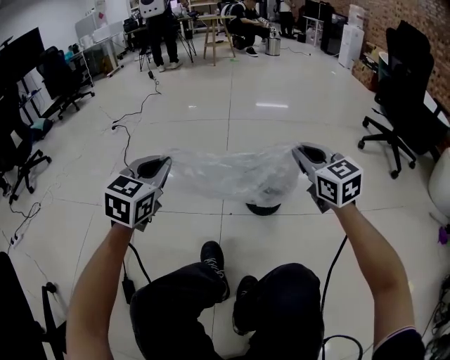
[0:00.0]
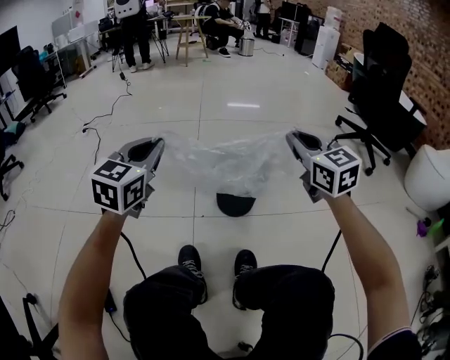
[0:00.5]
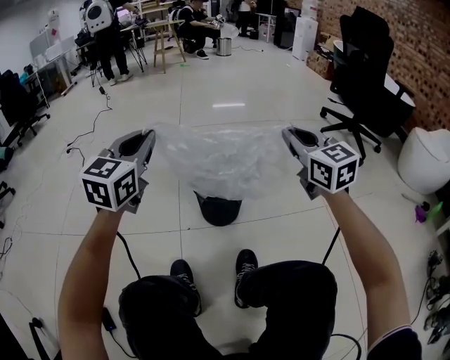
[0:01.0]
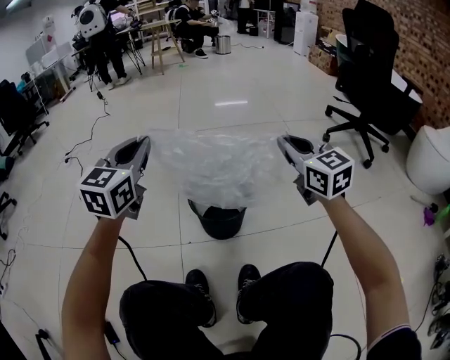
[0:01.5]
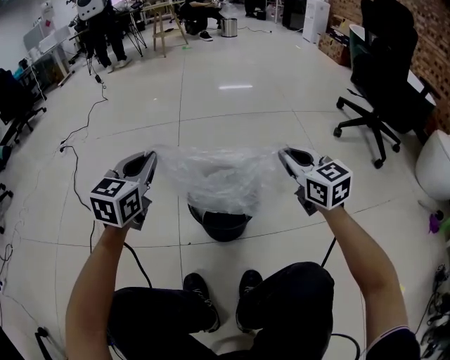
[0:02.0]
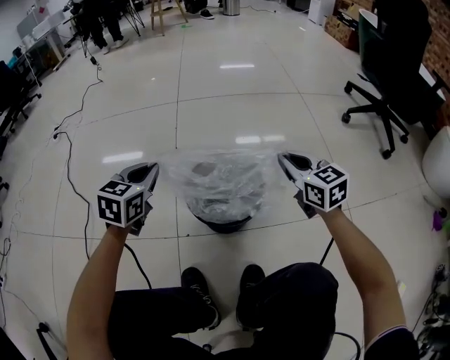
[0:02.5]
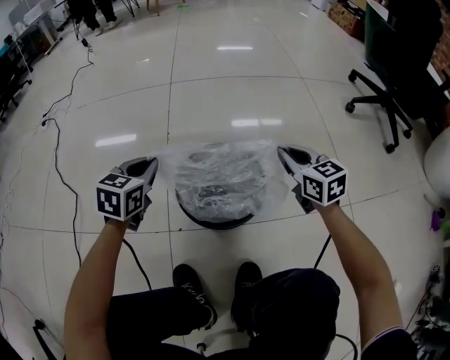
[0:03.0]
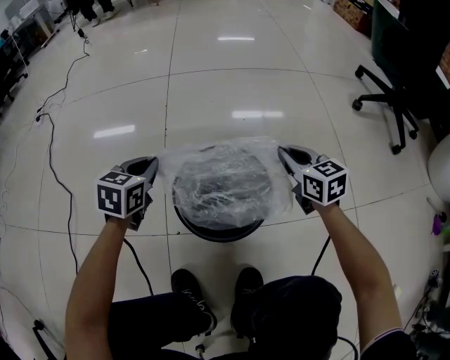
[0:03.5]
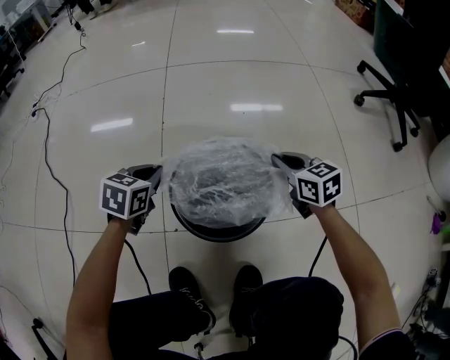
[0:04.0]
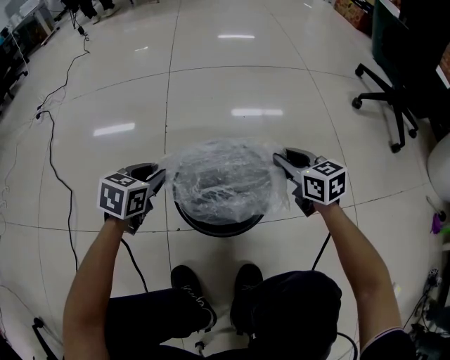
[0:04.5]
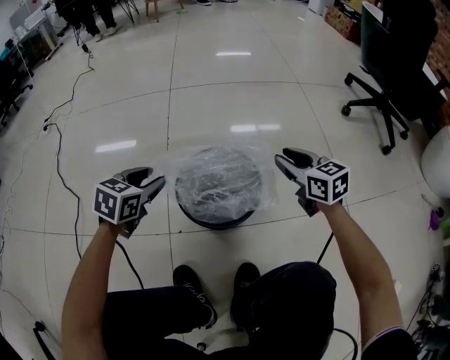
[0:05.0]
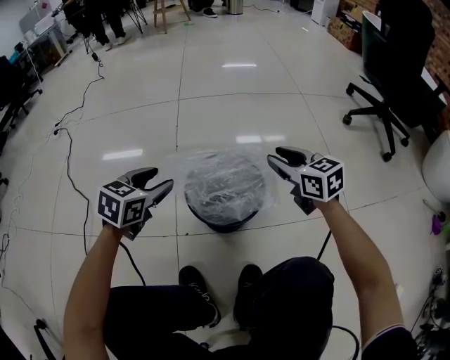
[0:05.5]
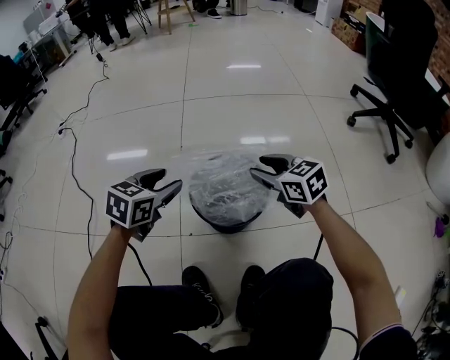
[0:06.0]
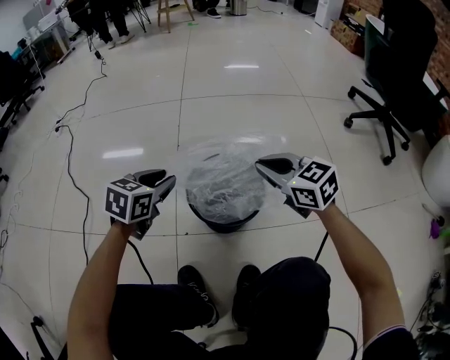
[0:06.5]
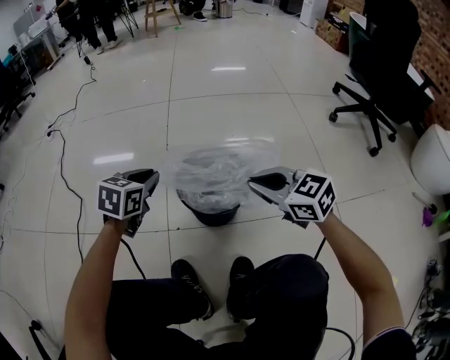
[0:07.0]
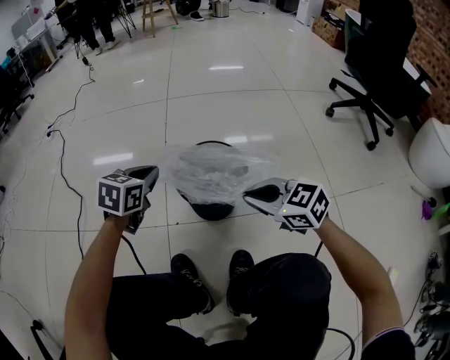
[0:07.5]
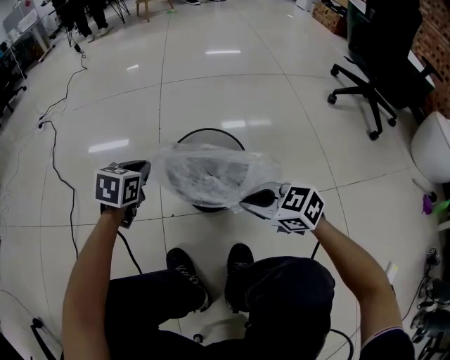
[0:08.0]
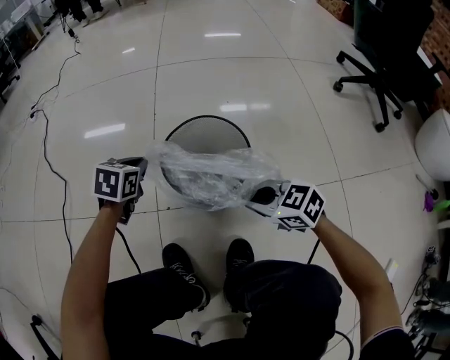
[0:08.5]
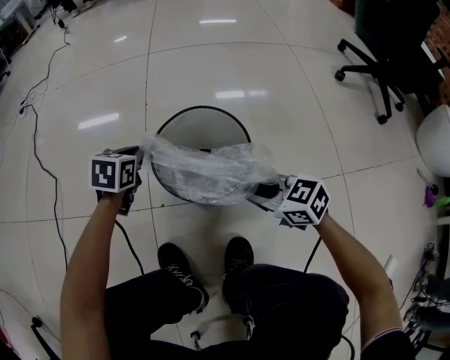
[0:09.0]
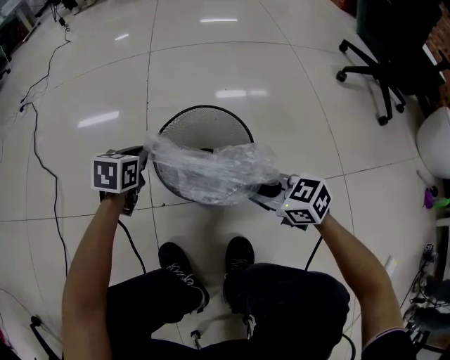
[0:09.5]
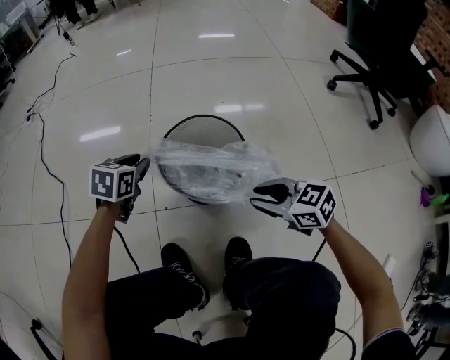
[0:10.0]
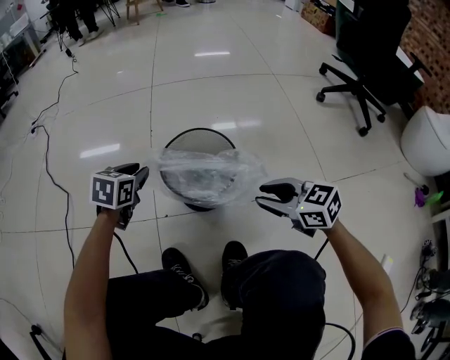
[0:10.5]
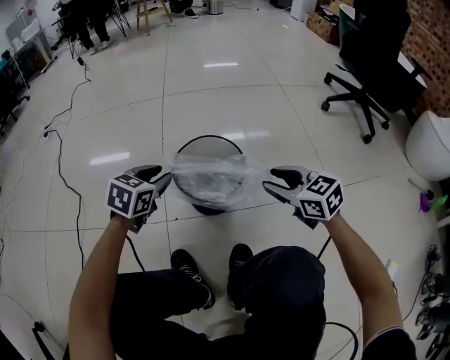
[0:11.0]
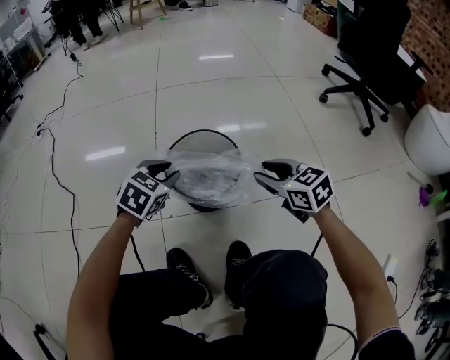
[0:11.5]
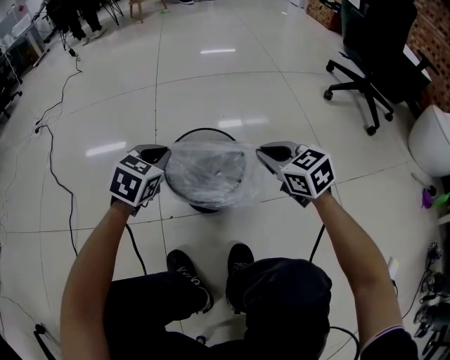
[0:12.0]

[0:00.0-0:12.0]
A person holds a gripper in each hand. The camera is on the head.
0:00.0 to 0:02.0: The right gripper goes approximately 25 cm forward, to the right and downward. The left gripper goes approximately 25 cm forward and to the right.
0:02.0 to 0:04.0: The two grippers go roughly 25 cm downward. The right gripper rotates approximately 30 degrees. Meanwhile the left gripper points its fingers some 30 degrees further downward.
0:04.0 to 0:06.0: The left gripper goes about 15 cm upward and backward, and opens its fingers; the right gripper heads upward and to the left, covering roughly 15 cm, and opens its fingers.
0:06.0 to 0:08.0: The left gripper changes place by about 5 cm, and closes. Meanwhile the right gripper travels backward by approximately 15 cm, and closes.
0:08.0 to 0:10.0: The left gripper is displaced downward by about 5 cm, and opens its fingers. Meanwhile the right gripper shifts by some 5 cm, and opens its fingers.
0:10.0 to 0:12.0: The left gripper shifts approximately 10 cm upward and to the right, turns by about 20 degrees, and closes its fingers; the right gripper shifts about 15 cm forward and upward, swivels roughly 20 degrees, and closes.

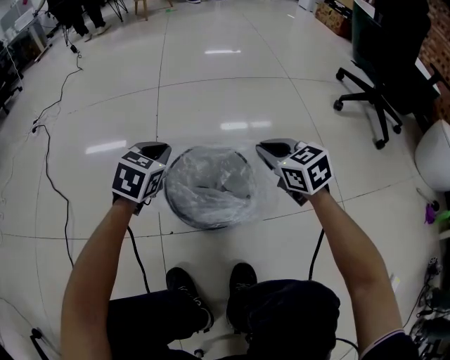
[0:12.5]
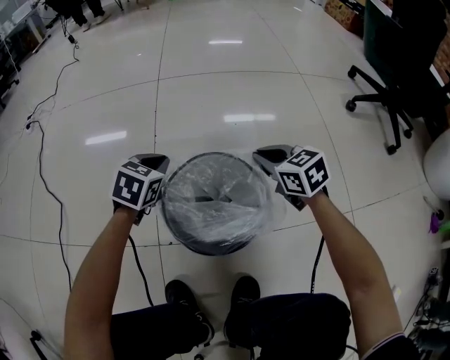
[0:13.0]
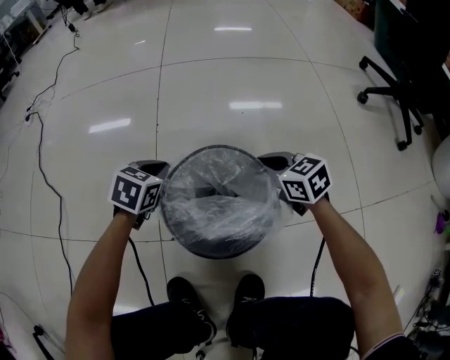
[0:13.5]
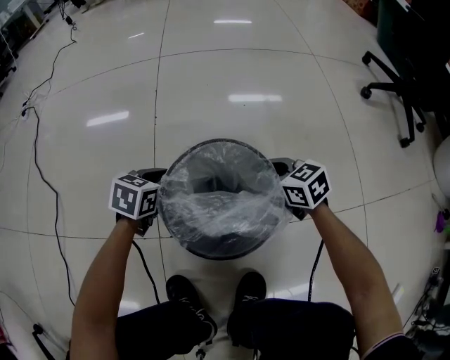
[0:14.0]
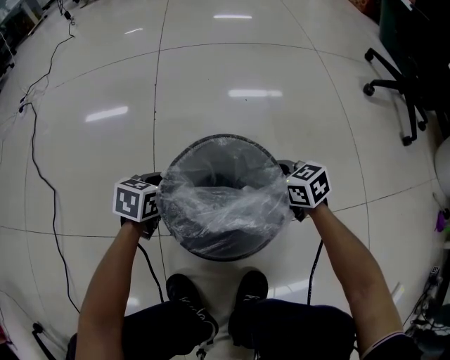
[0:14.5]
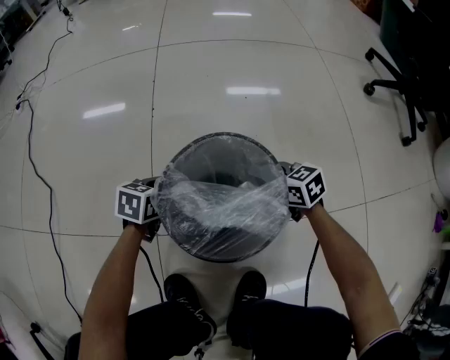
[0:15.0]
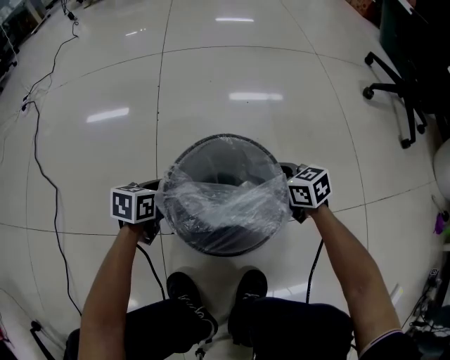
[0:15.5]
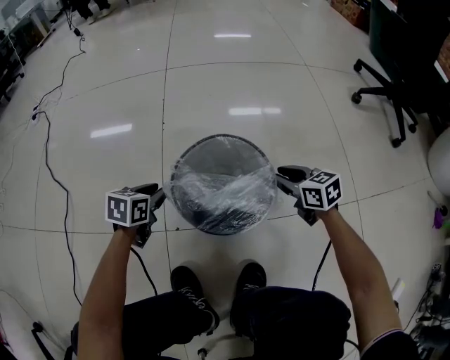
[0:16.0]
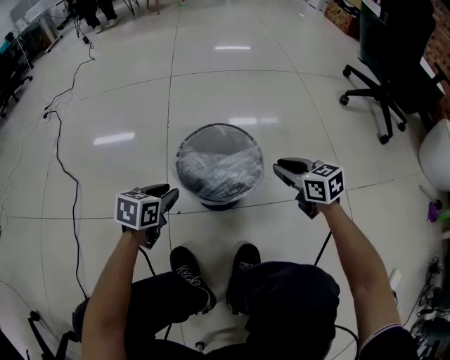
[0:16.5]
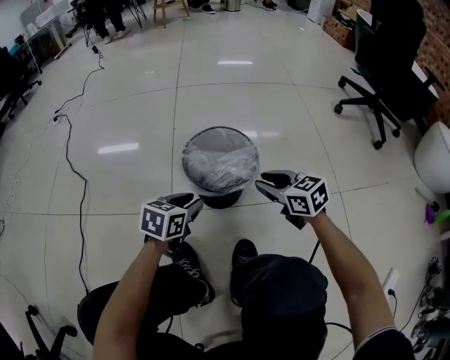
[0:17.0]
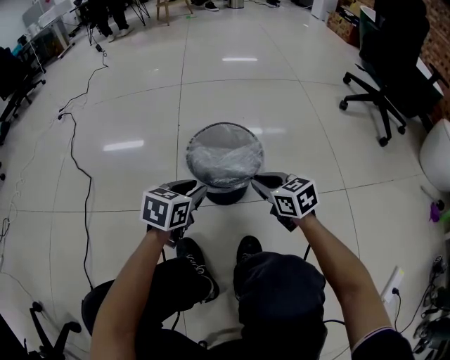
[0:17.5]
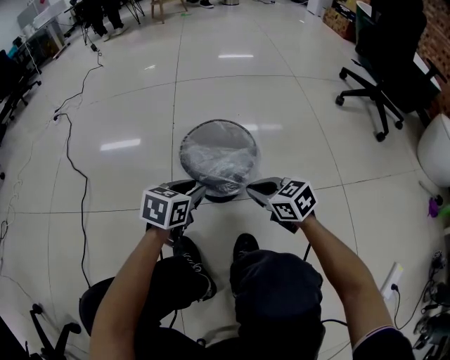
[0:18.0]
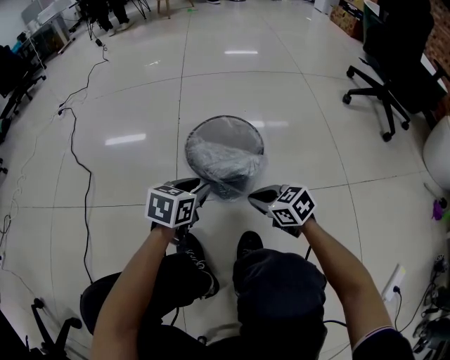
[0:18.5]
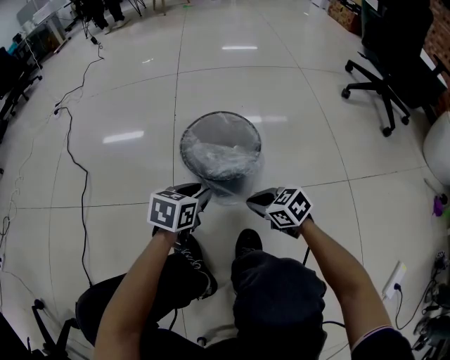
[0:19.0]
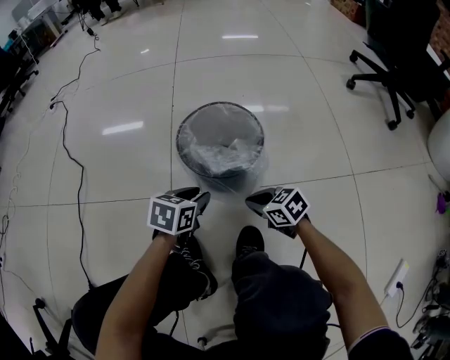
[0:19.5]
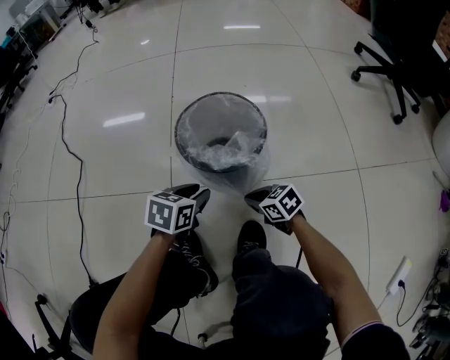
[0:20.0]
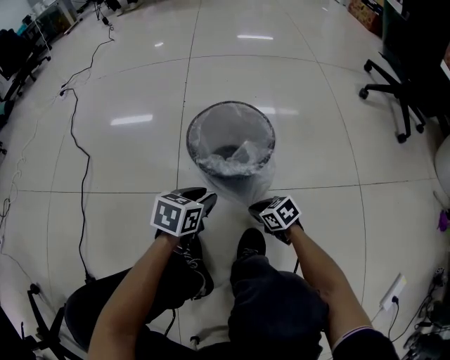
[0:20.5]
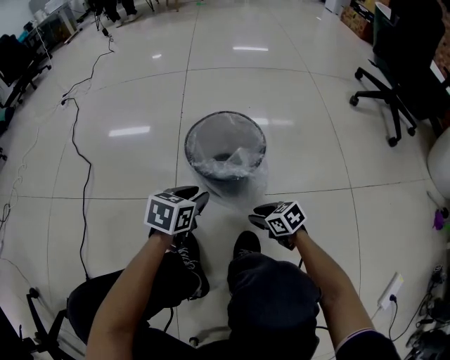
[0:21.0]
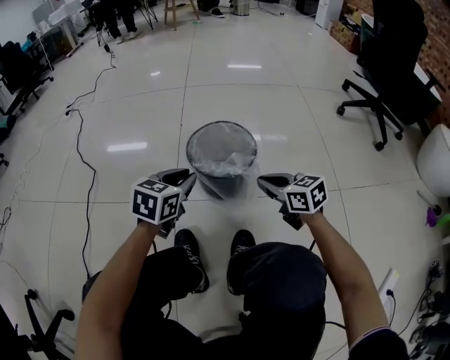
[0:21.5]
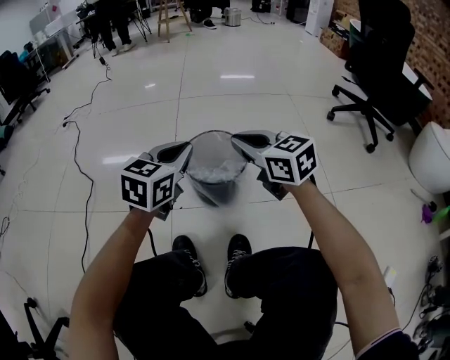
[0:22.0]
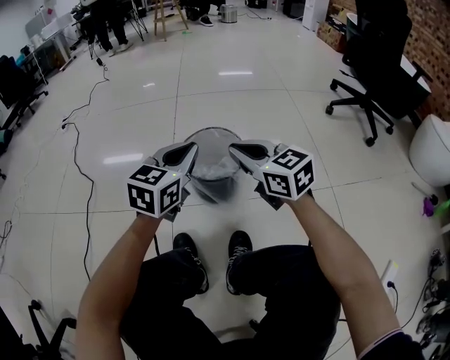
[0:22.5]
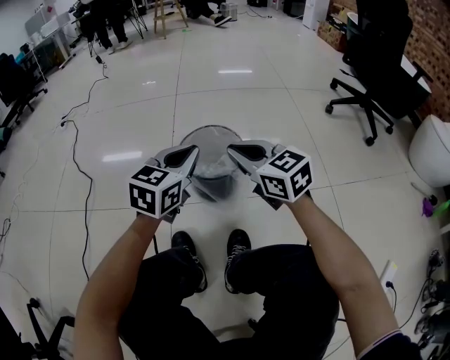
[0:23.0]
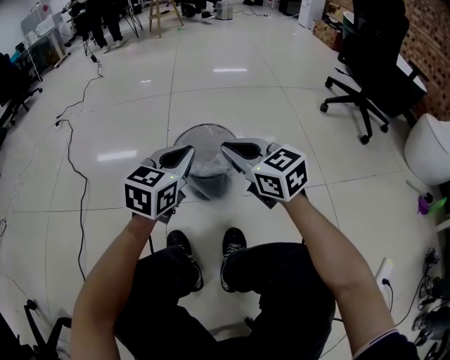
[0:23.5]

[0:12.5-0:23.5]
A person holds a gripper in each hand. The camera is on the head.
0:12.5 to 0:14.5: Both grippers travel together downward, approximately 20 cm. The left gripper swivels roughly 30 degrees; the right gripper swivels some 20 degrees.
0:14.5 to 0:16.0: The left gripper travels to the left by roughly 5 cm, and opens. Meanwhile the right gripper is displaced to the right by about 5 cm, and opens up.
0:16.0 to 0:18.0: The left gripper goes roughly 20 cm backward, upward and to the right. Meanwhile the right gripper goes roughly 20 cm backward, to the left and upward, and closes.
0:18.0 to 0:20.0: The right gripper moves downward, about 15 cm. The left gripper heads downward, covering about 10 cm.
0:20.0 to 0:21.5: Both grippers travel together upward, approximately 20 cm. The left gripper swivels approximately 20 degrees, while the right gripper rotates about 20 degrees, and opens, then closes again.
0:21.5 to 0:23.5: The left gripper heads upward and to the right, covering about 10 cm; the right gripper shifts about 15 cm upward, and changes its angle by roughly 20 degrees.

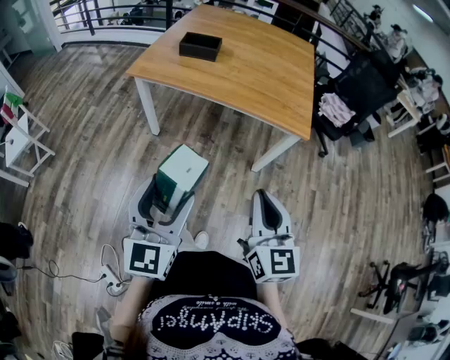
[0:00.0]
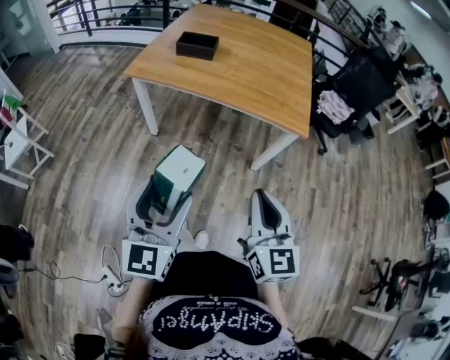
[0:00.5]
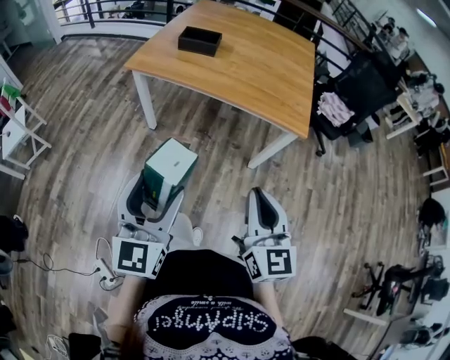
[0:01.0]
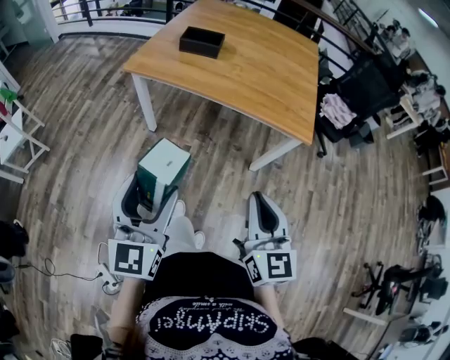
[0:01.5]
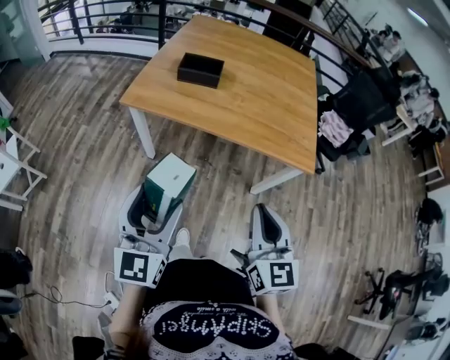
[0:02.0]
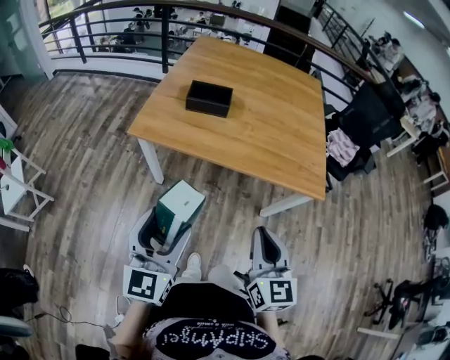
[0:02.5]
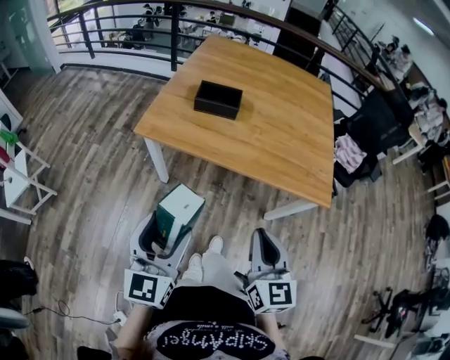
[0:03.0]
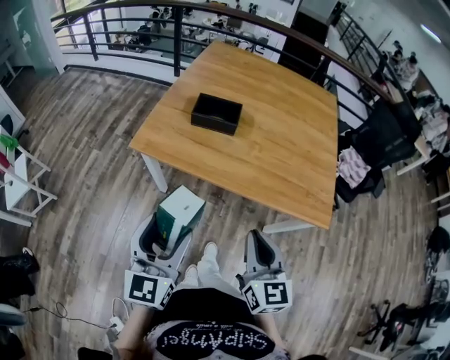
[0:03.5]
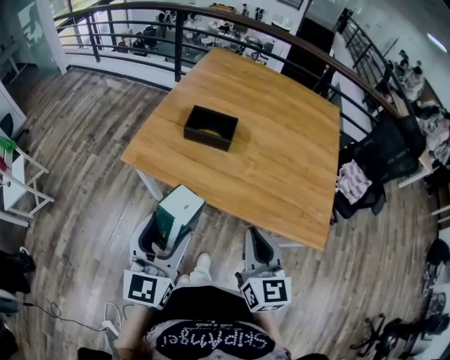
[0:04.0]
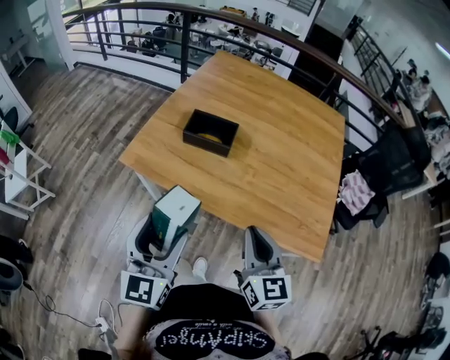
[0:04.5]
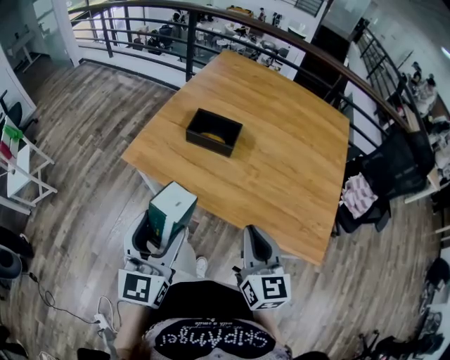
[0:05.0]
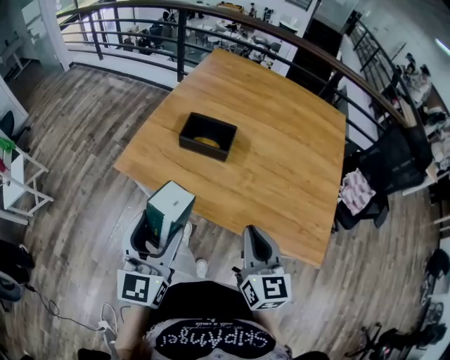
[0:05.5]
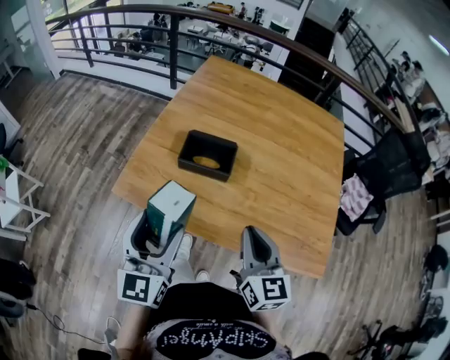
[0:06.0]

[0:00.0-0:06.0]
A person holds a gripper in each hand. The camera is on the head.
0:00.0 to 0:02.0: The left gripper heads forward and to the left, covering approximately 20 cm, while the right gripper moves forward, about 15 cm.
0:02.0 to 0:04.0: Both grippers travel together forward, roughly 25 cm.
0:04.0 to 0:06.0: The grippers both shift forward by roughly 15 cm.
